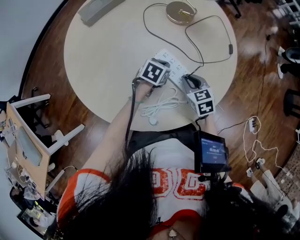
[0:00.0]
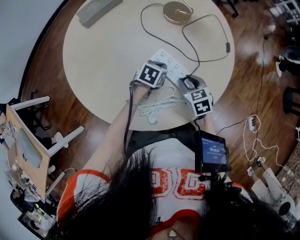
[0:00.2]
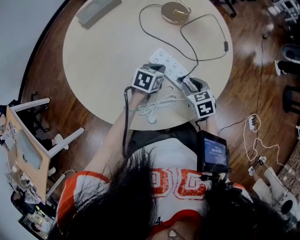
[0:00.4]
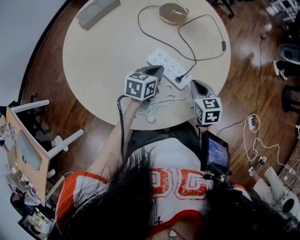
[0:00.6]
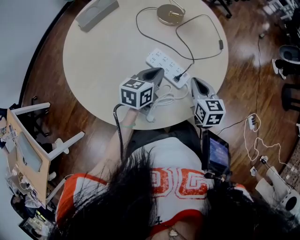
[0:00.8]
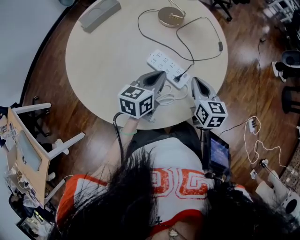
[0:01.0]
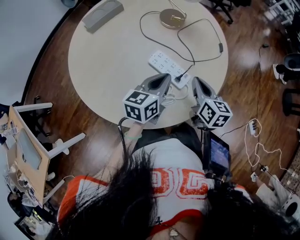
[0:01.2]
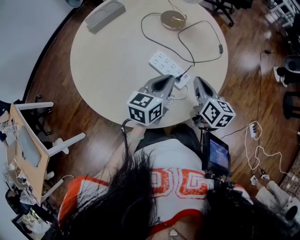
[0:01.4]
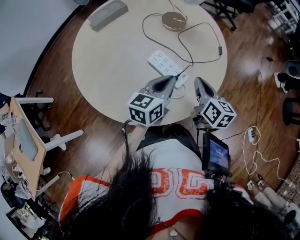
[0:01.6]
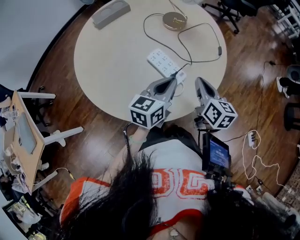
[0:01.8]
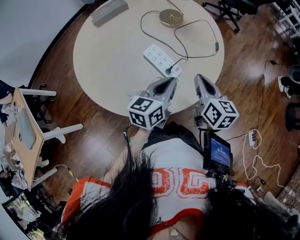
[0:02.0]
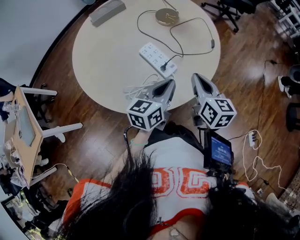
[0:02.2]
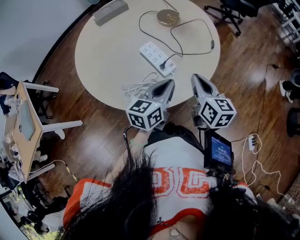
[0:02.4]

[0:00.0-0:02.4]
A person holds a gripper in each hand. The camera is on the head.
0:00.0 to 0:01.2: The left gripper is displaced upward and backward by roughly 20 cm, and angles its fingers upward, by some 30 degrees. The right gripper goes approximately 10 cm upward, and changes its angle by approximately 40 degrees.
0:01.2 to 0:02.4: The right gripper goes approximately 5 cm to the right; the left gripper moves to the right and backward, some 10 cm.

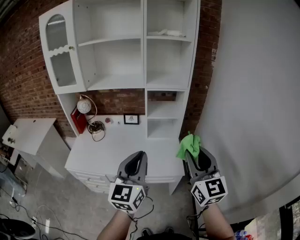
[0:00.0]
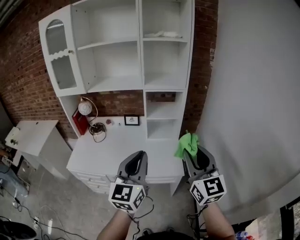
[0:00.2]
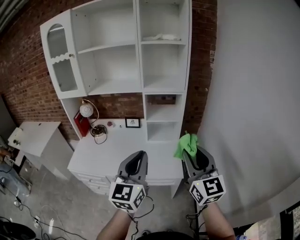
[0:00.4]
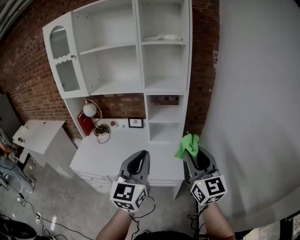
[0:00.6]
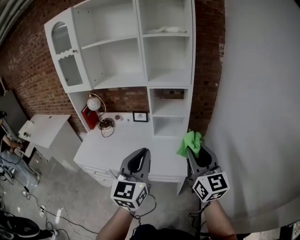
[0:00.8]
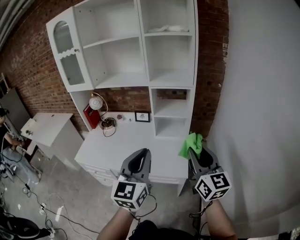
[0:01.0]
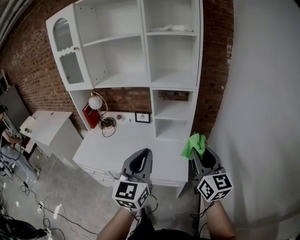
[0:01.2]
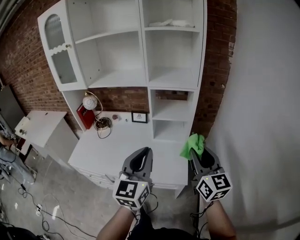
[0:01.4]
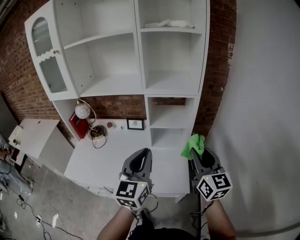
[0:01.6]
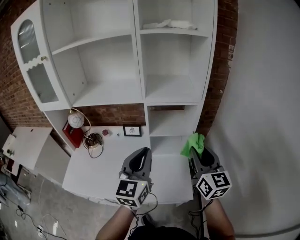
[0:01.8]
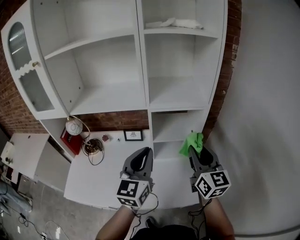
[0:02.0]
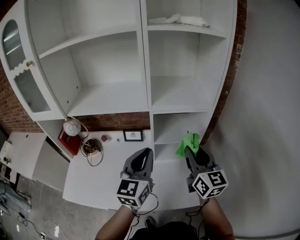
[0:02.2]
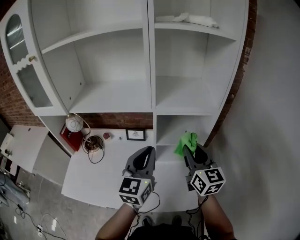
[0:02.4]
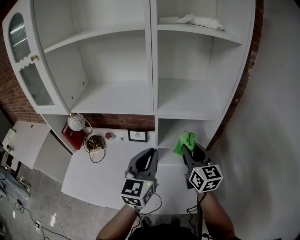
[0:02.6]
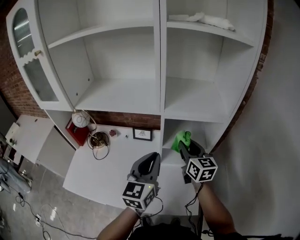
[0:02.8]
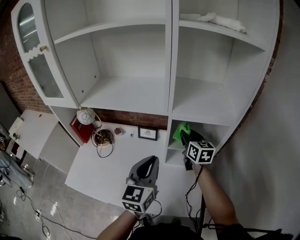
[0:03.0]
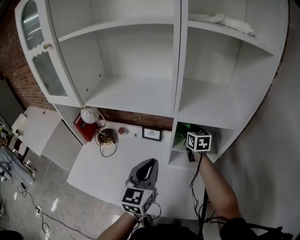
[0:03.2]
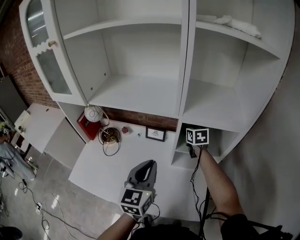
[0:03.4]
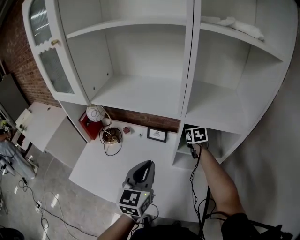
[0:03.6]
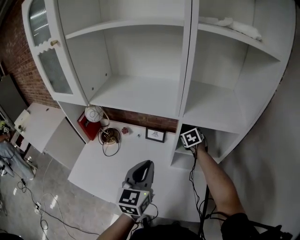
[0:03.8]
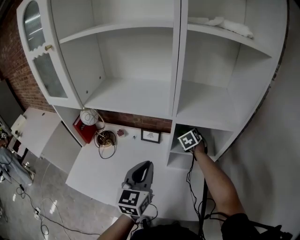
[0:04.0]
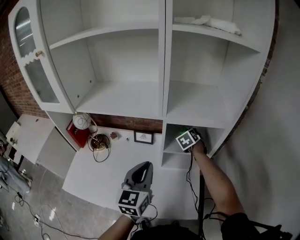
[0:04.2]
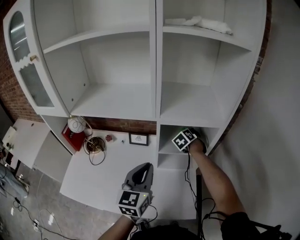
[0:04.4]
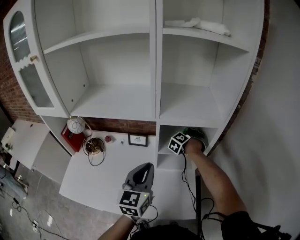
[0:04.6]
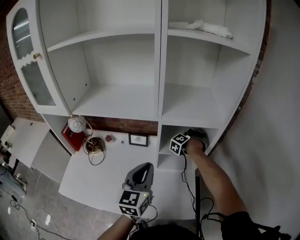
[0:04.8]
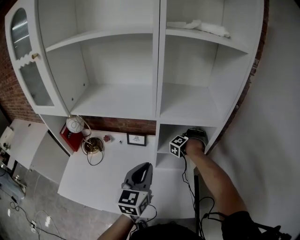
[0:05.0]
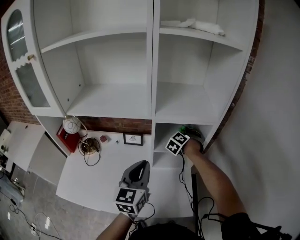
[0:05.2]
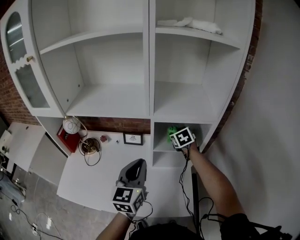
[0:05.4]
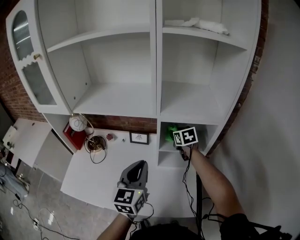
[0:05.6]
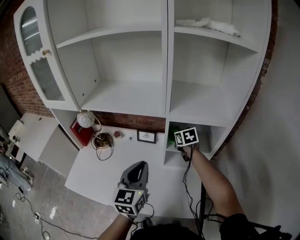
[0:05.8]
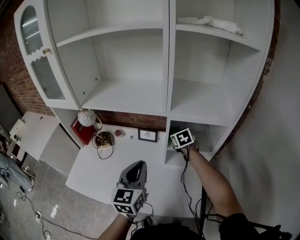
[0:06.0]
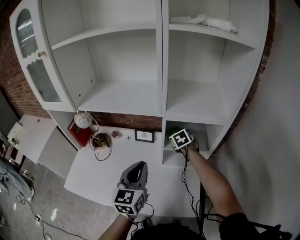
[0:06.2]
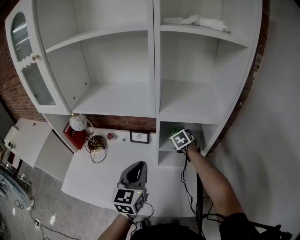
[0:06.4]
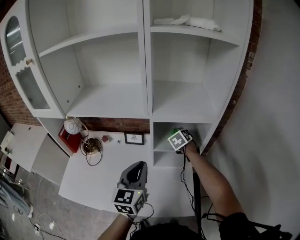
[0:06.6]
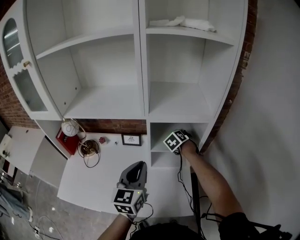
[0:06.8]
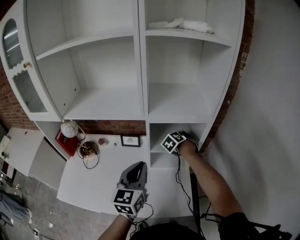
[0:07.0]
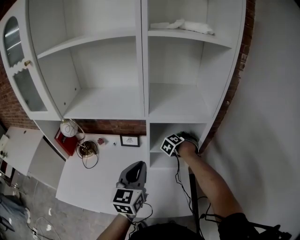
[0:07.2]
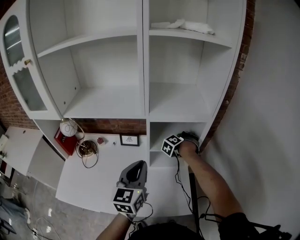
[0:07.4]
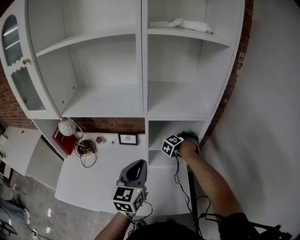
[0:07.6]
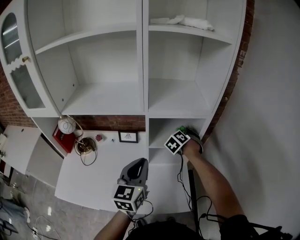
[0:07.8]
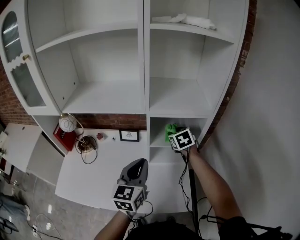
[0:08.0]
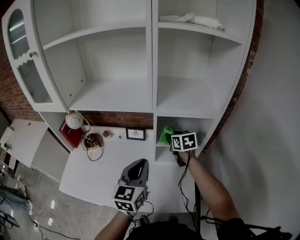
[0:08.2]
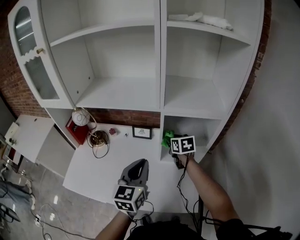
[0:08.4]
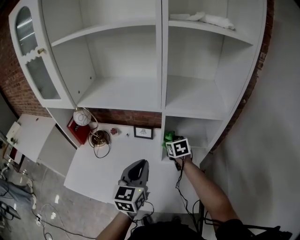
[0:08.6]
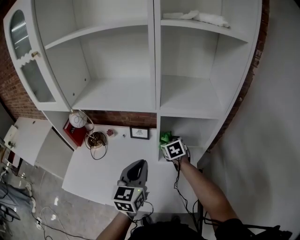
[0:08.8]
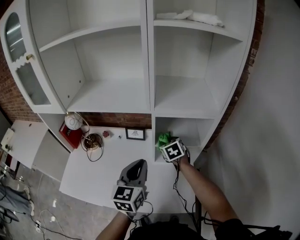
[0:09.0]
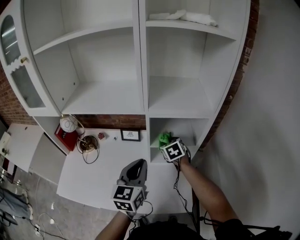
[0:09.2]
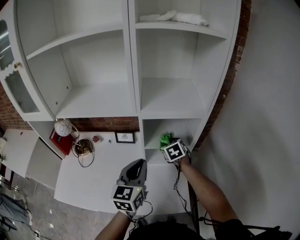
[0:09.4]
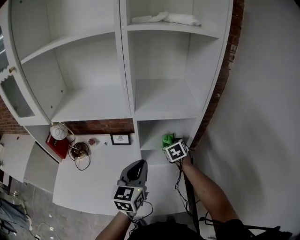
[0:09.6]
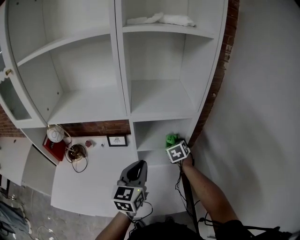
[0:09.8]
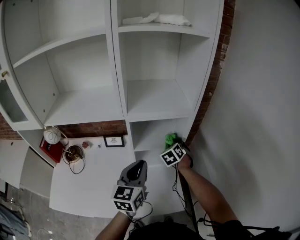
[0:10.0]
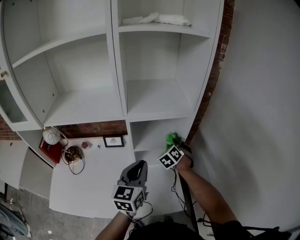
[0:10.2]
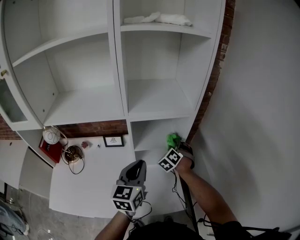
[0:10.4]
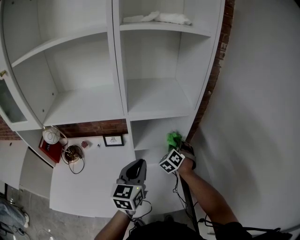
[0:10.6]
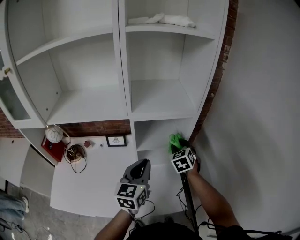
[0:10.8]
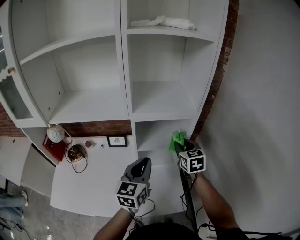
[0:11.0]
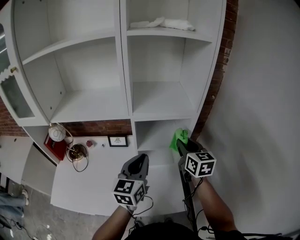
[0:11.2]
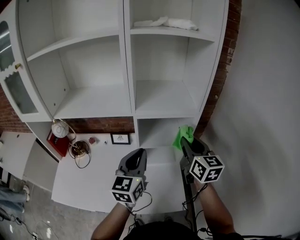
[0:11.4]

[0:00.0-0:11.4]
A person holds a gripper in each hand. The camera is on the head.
0:00.0 to 0:01.4: The right gripper goes about 15 cm forward, to the right and downward, while the left gripper shifts about 10 cm forward and to the right.
0:01.4 to 0:02.8: Both grippers move forward, some 30 cm.
0:02.8 to 0:04.2: The right gripper moves forward and downward, roughly 20 cm, and tilts its fingers about 40 degrees downward.
0:04.2 to 0:05.6: The right gripper shifts approximately 5 cm upward, and changes its angle by approximately 30 degrees.
0:05.6 to 0:07.2: The right gripper ends up about 10 cm from where it was, and turns by roughly 60 degrees.
0:07.2 to 0:08.6: The right gripper goes upward and returns, approximately 10 cm each way, and swivels some 60 degrees.
0:08.6 to 0:10.0: The right gripper shifts by some 20 cm, and changes its angle by roughly 40 degrees. The left gripper changes place by approximately 10 cm.
0:10.0 to 0:11.4: The left gripper is displaced upward by about 5 cm. Meanwhile the right gripper is displaced upward and backward by some 25 cm, and tilts its fingers about 40 degrees upward.

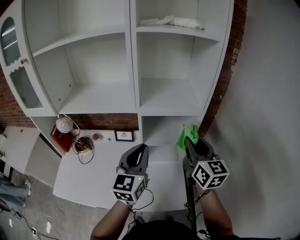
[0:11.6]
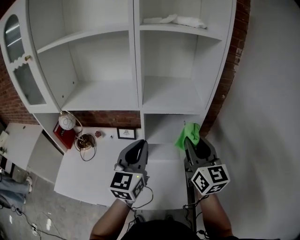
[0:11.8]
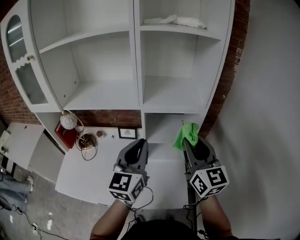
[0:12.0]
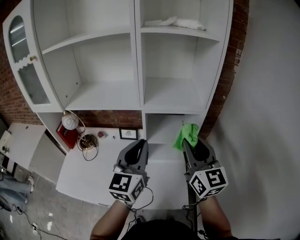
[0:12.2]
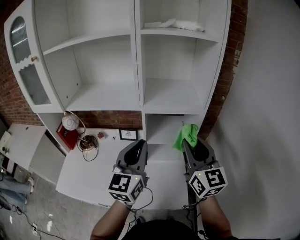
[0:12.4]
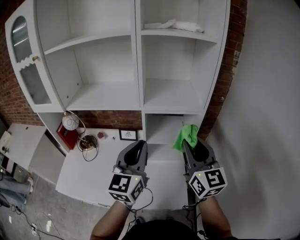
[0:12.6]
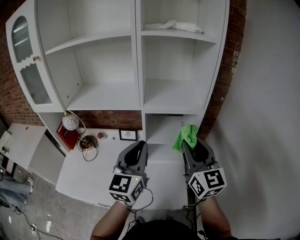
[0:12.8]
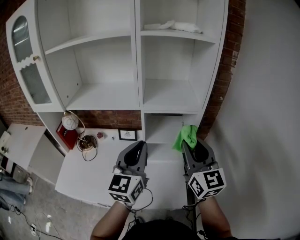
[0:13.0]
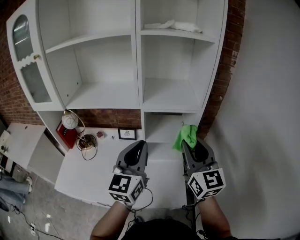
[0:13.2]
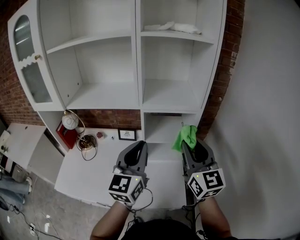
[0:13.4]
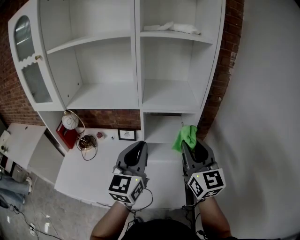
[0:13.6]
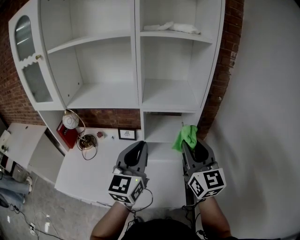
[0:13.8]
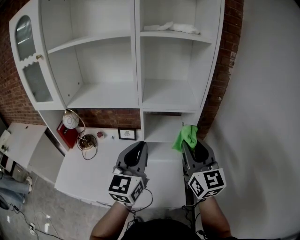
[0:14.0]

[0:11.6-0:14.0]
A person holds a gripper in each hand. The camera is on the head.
0:11.6 to 0:12.8: The left gripper shifts by about 5 cm. Meanwhile the right gripper heads backward, covering some 5 cm.
0:12.8 to 0:14.0: The grippers stay close to where they were, moving slightly.

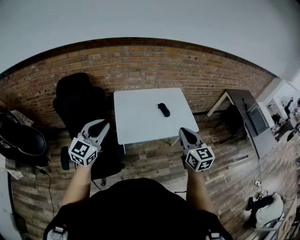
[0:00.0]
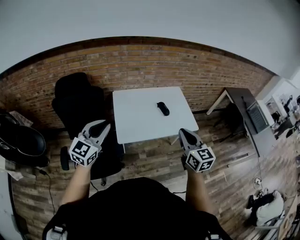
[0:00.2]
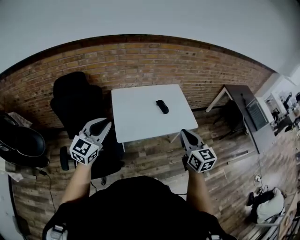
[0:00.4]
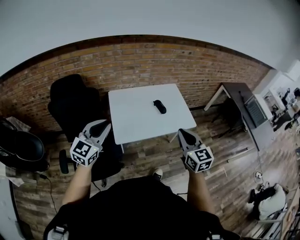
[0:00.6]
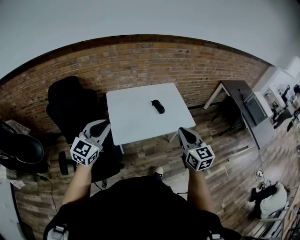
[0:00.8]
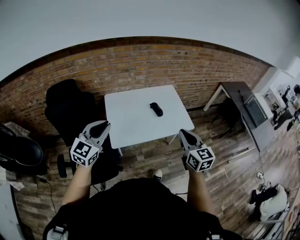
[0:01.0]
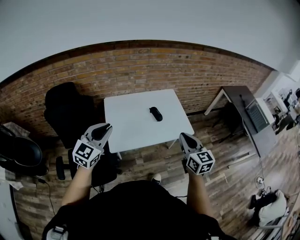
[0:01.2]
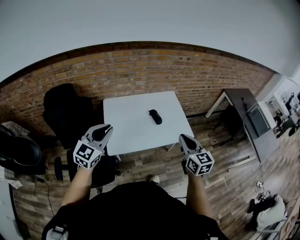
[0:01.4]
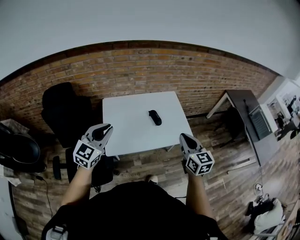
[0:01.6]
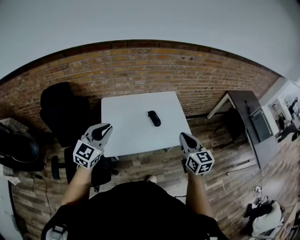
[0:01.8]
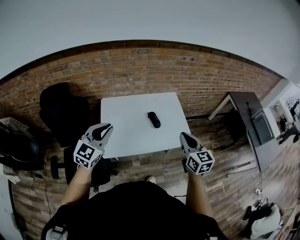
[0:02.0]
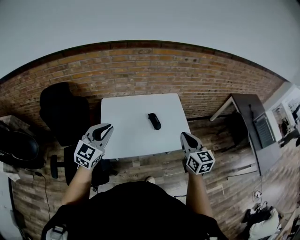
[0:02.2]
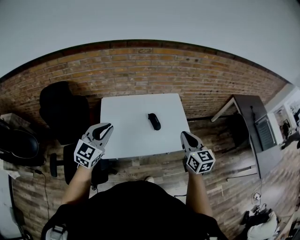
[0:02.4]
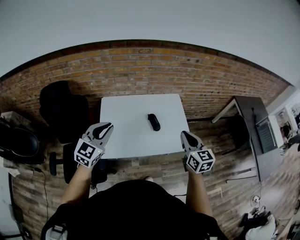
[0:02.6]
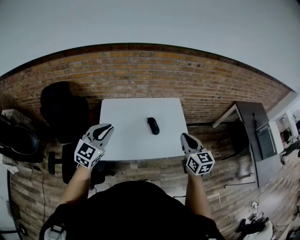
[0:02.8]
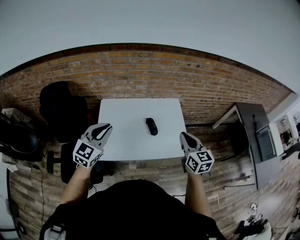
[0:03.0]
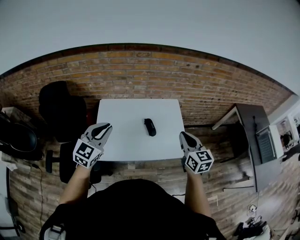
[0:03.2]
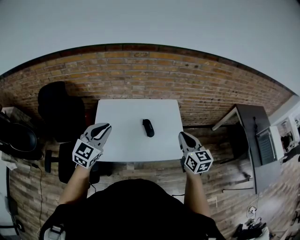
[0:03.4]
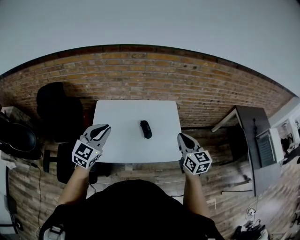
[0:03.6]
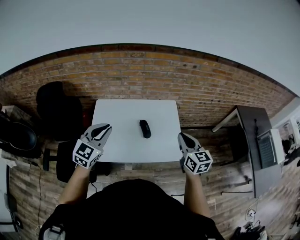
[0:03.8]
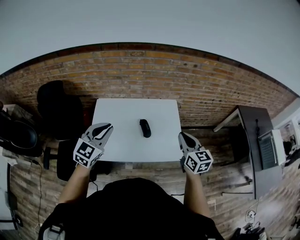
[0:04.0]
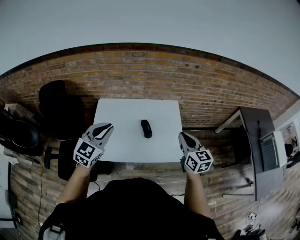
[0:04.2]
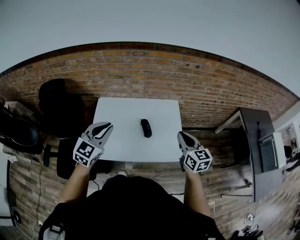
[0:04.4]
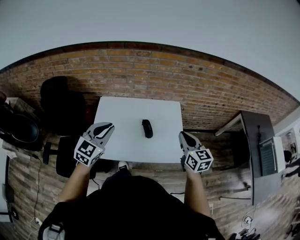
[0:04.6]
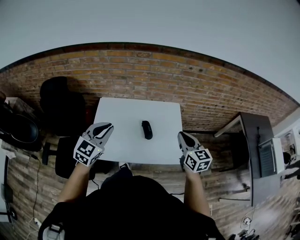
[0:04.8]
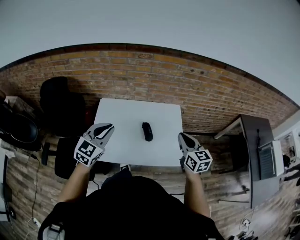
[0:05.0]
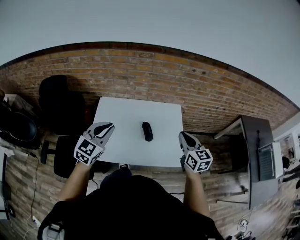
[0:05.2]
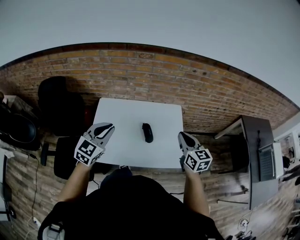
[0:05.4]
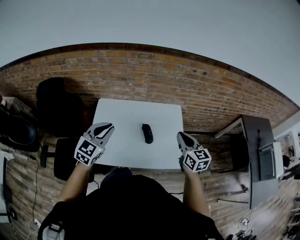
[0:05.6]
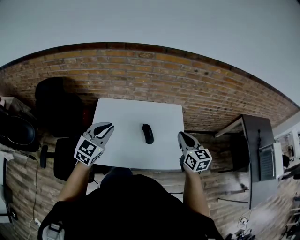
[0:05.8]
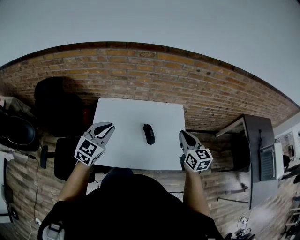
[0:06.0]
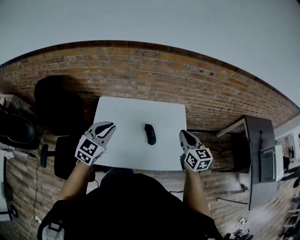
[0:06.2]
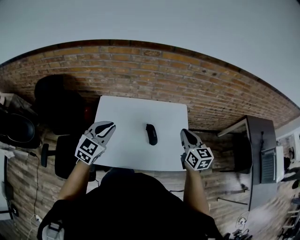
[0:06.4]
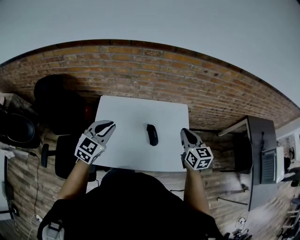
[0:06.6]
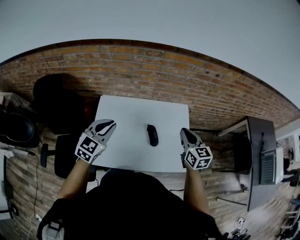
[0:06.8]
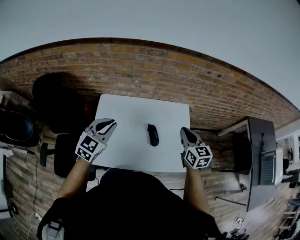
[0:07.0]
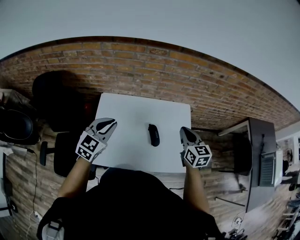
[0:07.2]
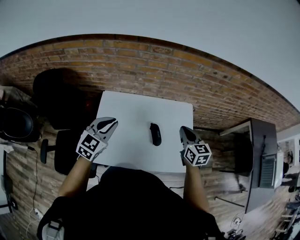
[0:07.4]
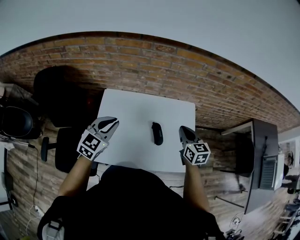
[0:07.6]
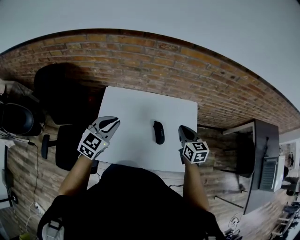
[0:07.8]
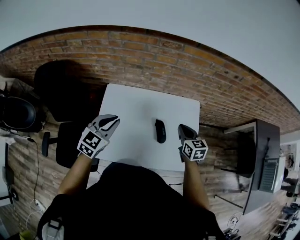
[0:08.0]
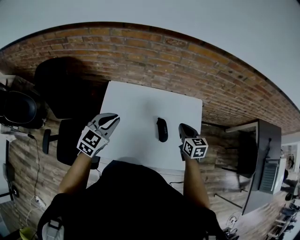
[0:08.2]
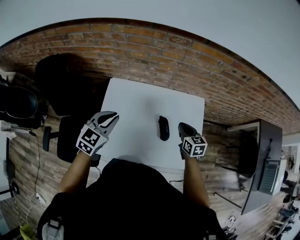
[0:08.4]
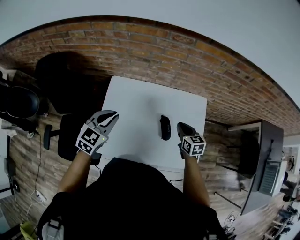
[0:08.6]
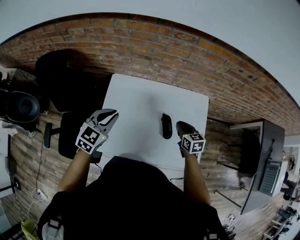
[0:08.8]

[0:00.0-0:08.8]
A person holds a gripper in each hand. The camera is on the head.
0:00.0 to 0:01.4: The right gripper travels to the right and forward by some 15 cm, while the left gripper shifts about 15 cm forward and to the right.
0:01.4 to 0:03.0: Both grippers travel together forward and to the right, about 20 cm.
0:03.0 to 0:04.4: The right gripper heads to the right and forward, covering about 10 cm, while the left gripper goes approximately 10 cm to the right.
0:04.4 to 0:05.8: Both grippers move forward, roughly 10 cm.
0:05.8 to 0:07.4: The right gripper shifts approximately 15 cm forward, to the left and downward. Meanwhile the left gripper moves forward, about 10 cm.
0:07.4 to 0:08.8: The left gripper moves downward and to the left, approximately 10 cm. Meanwhile the right gripper goes approximately 15 cm downward.
